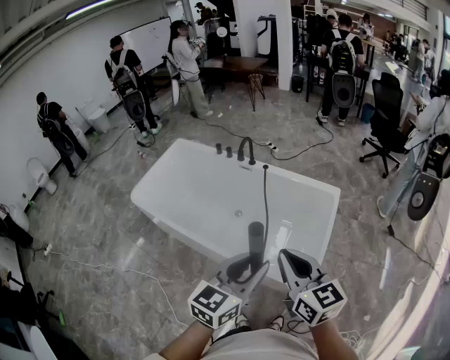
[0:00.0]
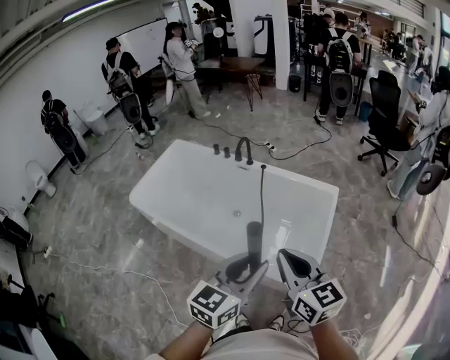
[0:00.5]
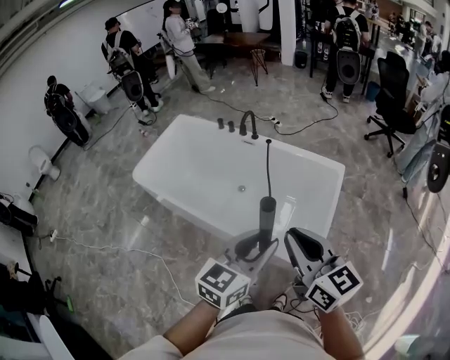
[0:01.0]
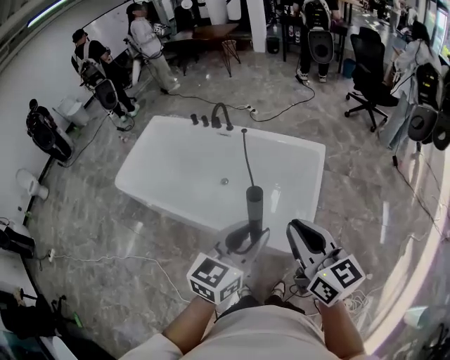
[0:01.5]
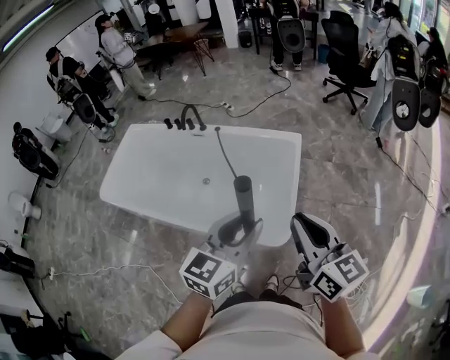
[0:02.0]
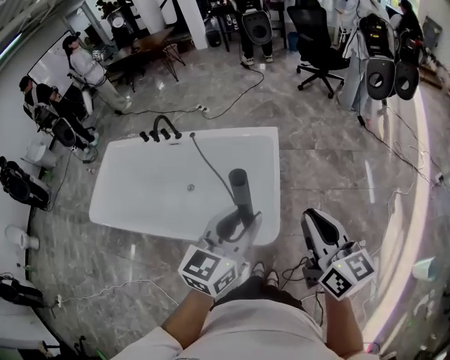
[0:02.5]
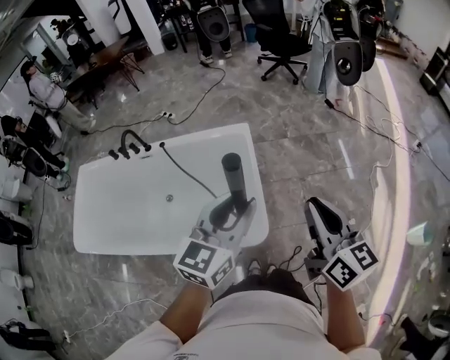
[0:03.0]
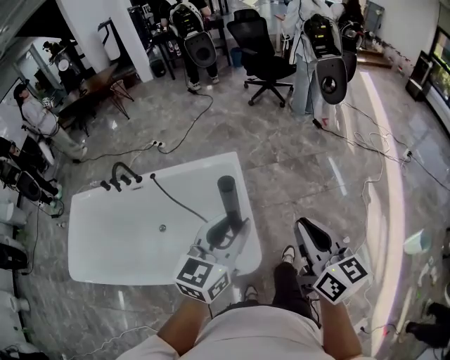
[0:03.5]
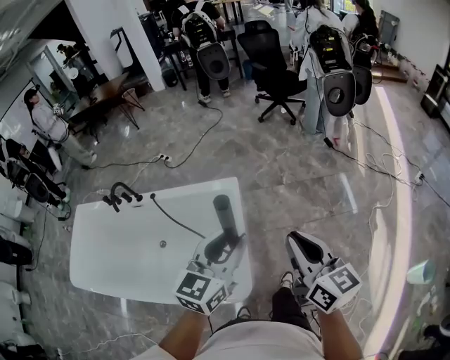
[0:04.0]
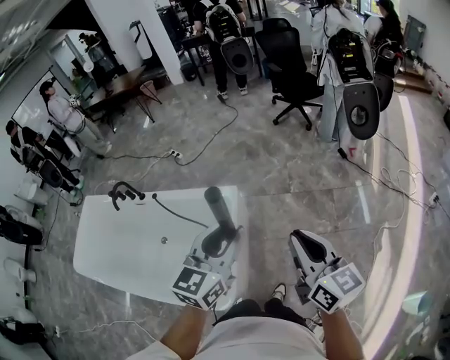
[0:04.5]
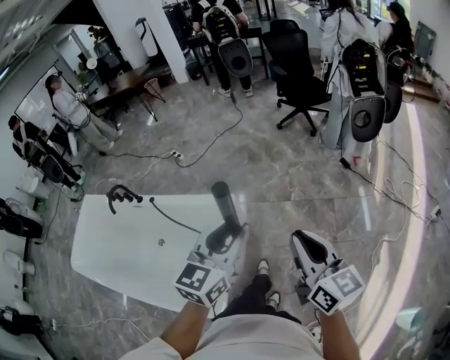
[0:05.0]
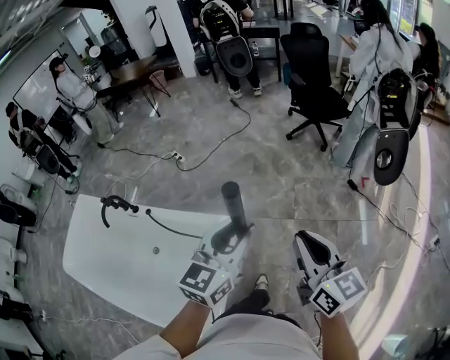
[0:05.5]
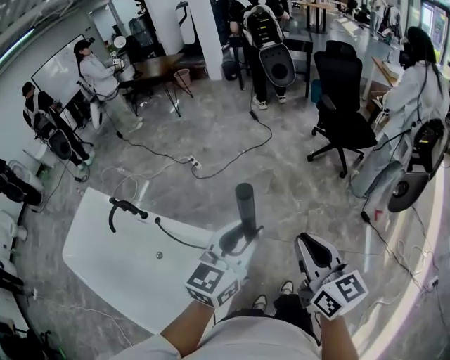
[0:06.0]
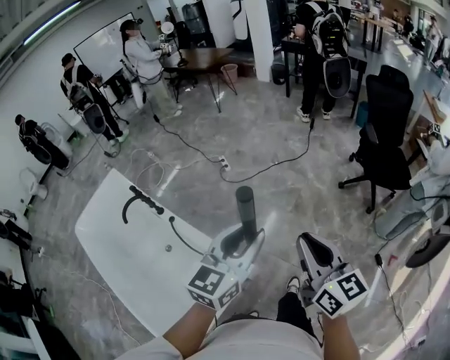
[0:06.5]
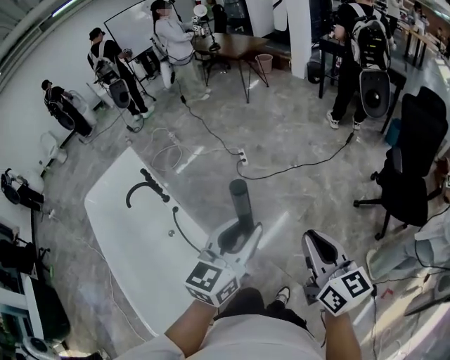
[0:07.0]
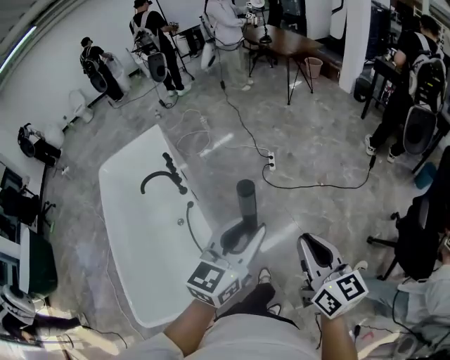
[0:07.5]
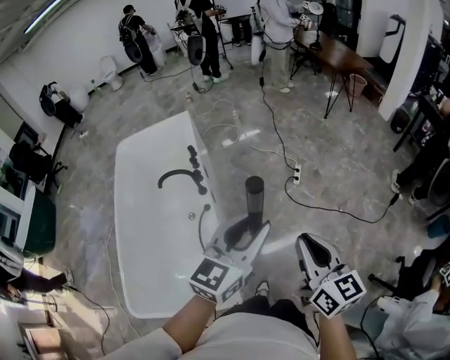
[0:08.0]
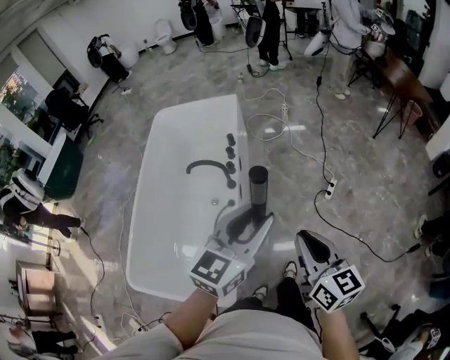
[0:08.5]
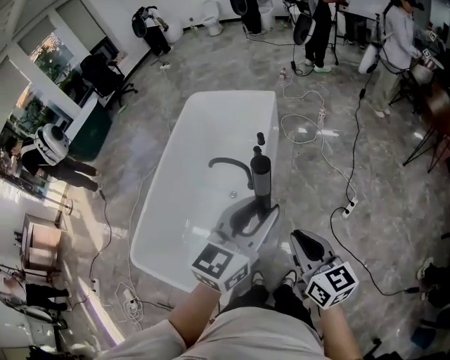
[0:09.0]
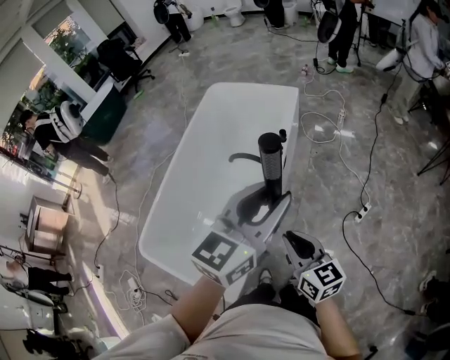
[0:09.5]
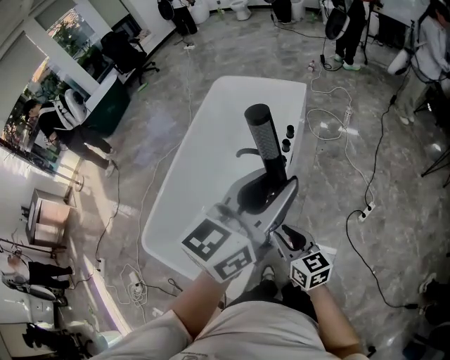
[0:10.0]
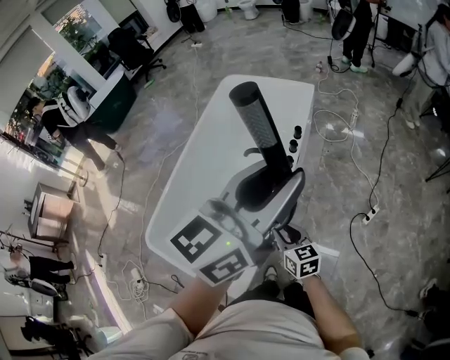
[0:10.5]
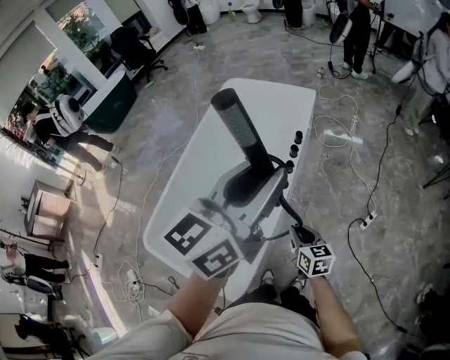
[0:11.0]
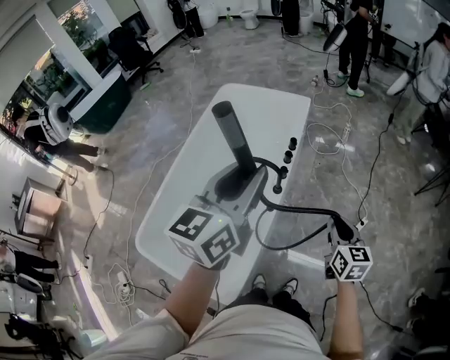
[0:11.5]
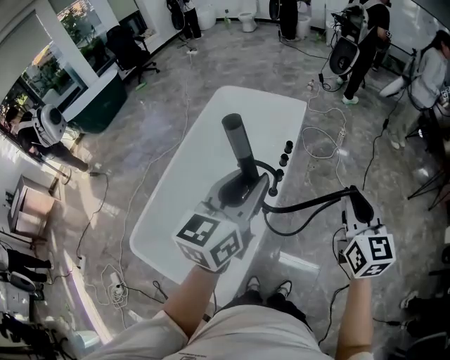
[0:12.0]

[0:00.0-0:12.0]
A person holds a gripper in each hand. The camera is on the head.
0:00.0 to 0:02.0: Both grippers travel together to the right, approximately 15 cm.
0:02.0 to 0:04.0: Both grippers travel together forward and to the right, roughly 25 cm.
0:04.0 to 0:06.0: The pair of grippers is taken forward, approximately 40 cm.
0:06.0 to 0:08.0: The left gripper moves roughly 40 cm, and changes its angle by about 50 degrees. The right gripper changes place by approximately 50 cm, and rotates approximately 50 degrees.
0:08.0 to 0:10.0: The left gripper changes place by about 25 cm, and swivels some 30 degrees. Meanwhile the right gripper moves some 30 cm, and changes its angle by some 50 degrees.
0:10.0 to 0:12.0: The left gripper travels to the left by about 10 cm. The right gripper goes some 25 cm upward, to the right and forward, and changes its angle by roughly 30 degrees.

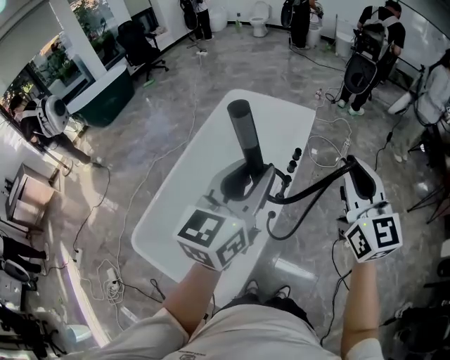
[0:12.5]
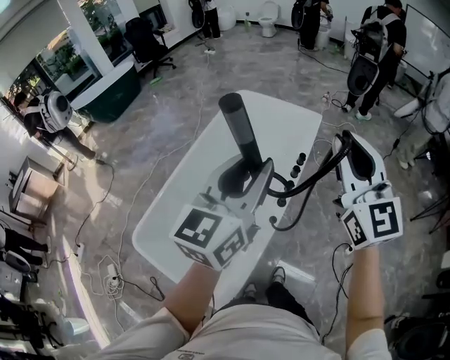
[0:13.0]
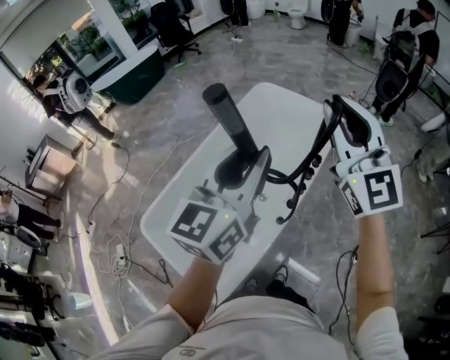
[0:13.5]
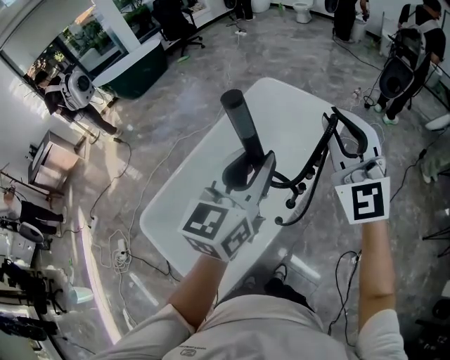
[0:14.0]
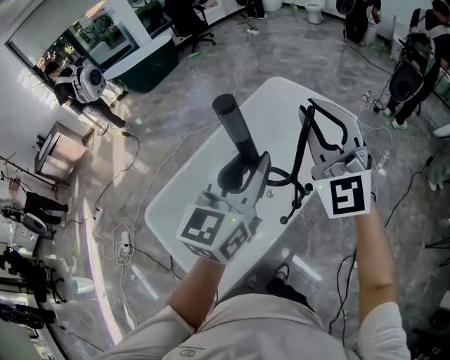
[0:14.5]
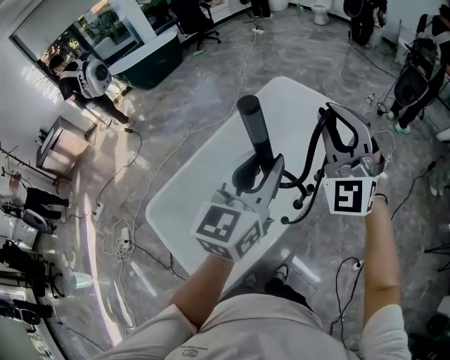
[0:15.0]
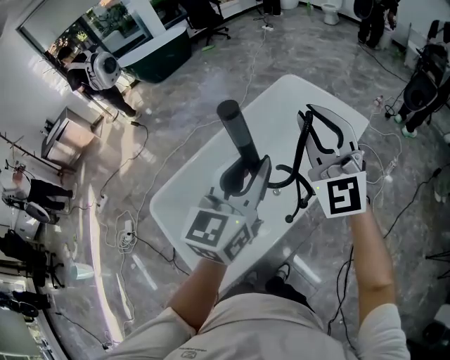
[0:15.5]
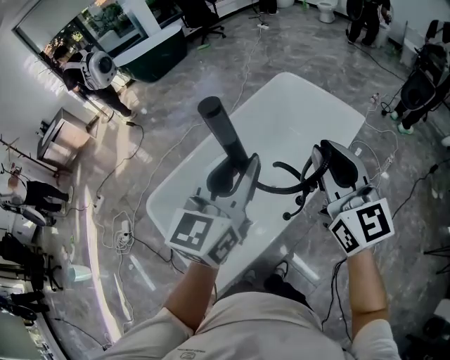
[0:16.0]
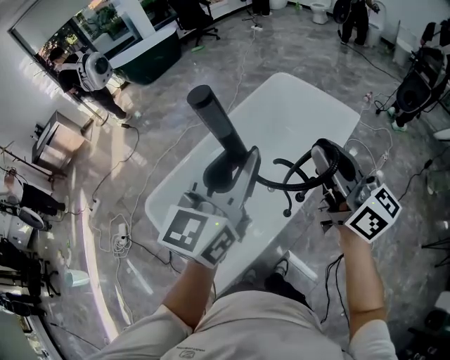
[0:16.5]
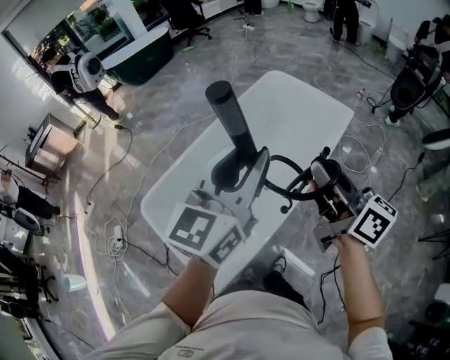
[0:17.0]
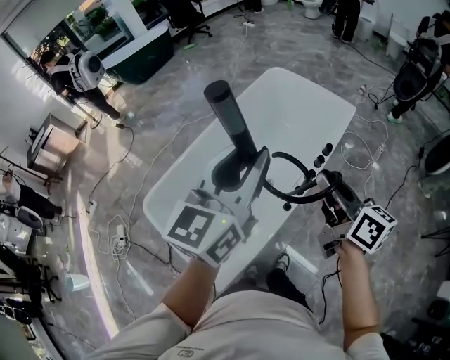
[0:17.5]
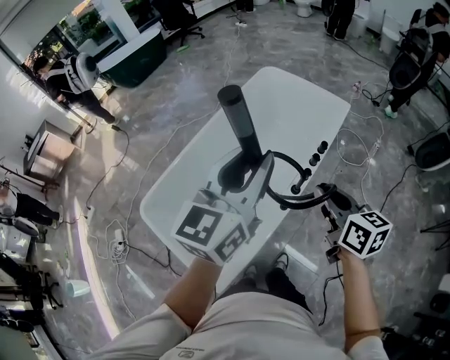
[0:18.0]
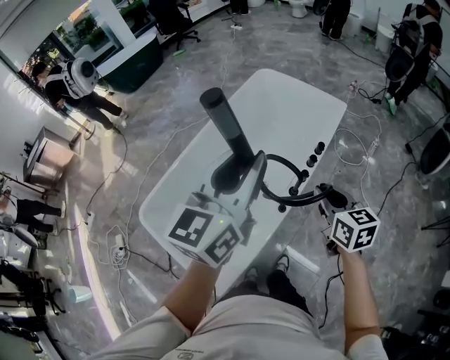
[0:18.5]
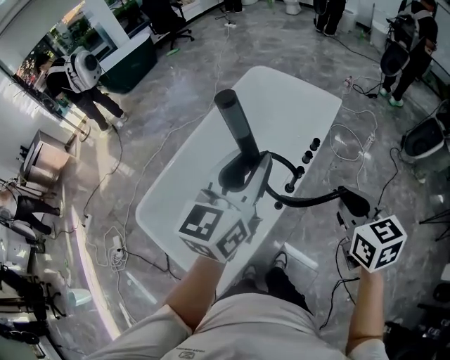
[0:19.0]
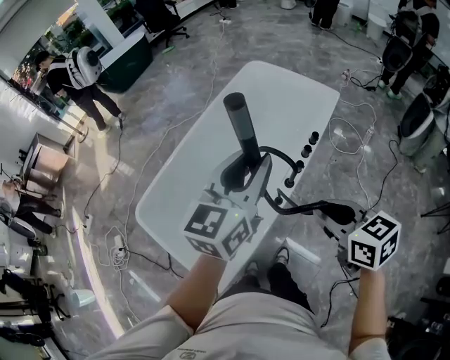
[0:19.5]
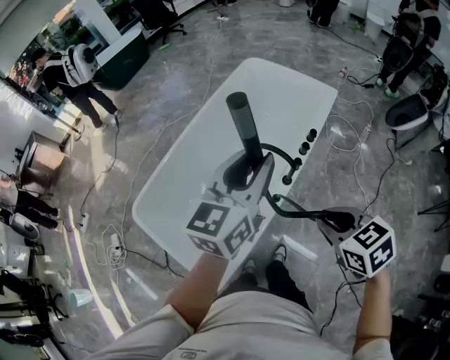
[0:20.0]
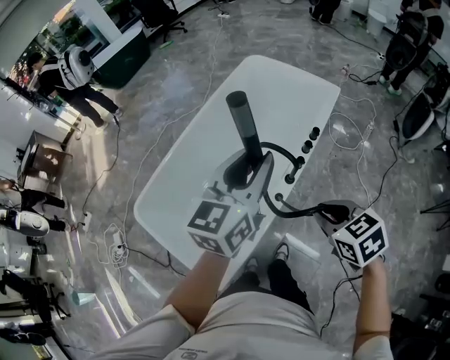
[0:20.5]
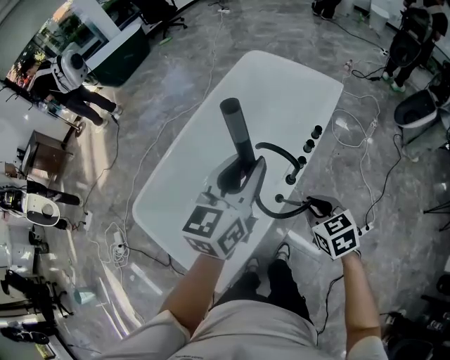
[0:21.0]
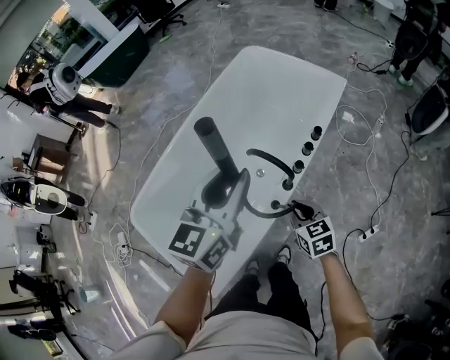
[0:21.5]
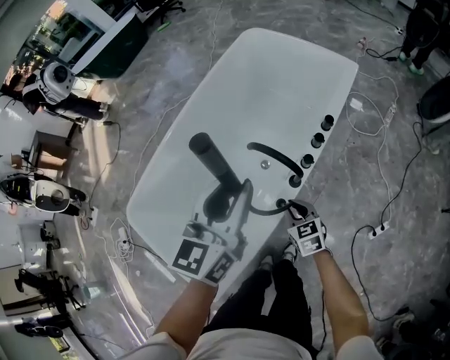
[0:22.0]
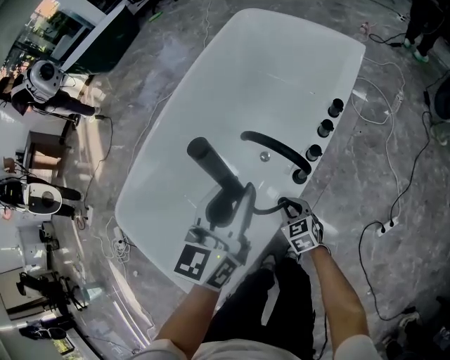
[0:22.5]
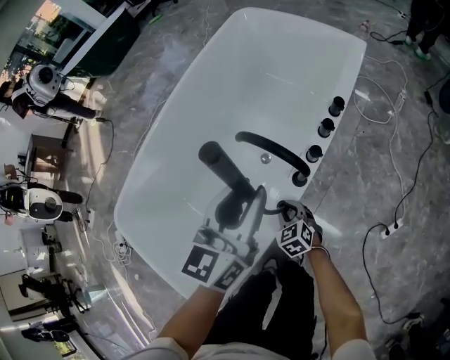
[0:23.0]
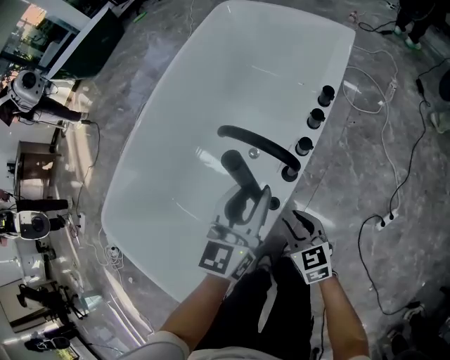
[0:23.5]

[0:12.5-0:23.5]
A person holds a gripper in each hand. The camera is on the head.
0:12.5 to 0:14.5: The left gripper moves forward, some 10 cm, and rotates approximately 20 degrees; the right gripper is displaced forward and to the left by roughly 20 cm, and turns by about 40 degrees.
0:14.5 to 0:16.0: The left gripper shifts some 5 cm to the left, while the right gripper changes place by about 5 cm, and rolls clockwise, seen from behind, by some 40 degrees.
0:16.0 to 0:18.0: The right gripper travels downward and backward by about 15 cm, and swivels approximately 40 degrees.
0:18.0 to 0:20.0: The left gripper travels downward by approximately 5 cm. The right gripper moves backward, some 10 cm, and rotates roughly 40 degrees.
0:20.0 to 0:21.5: The right gripper moves downward and forward, approximately 25 cm. Meanwhile the left gripper heads downward and forward, covering roughly 10 cm.
0:21.5 to 0:23.5: The grippers both shift downward by approximately 25 cm.

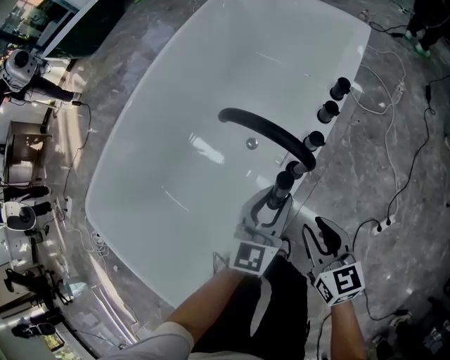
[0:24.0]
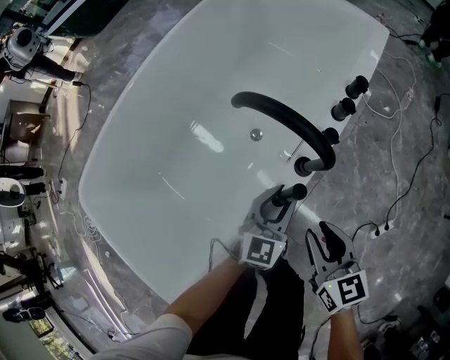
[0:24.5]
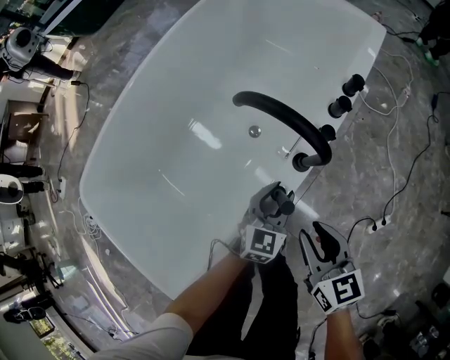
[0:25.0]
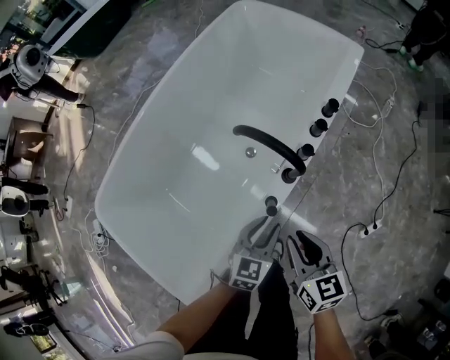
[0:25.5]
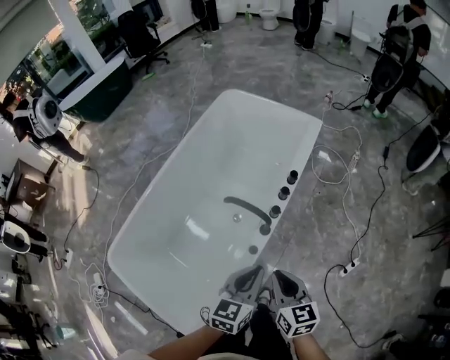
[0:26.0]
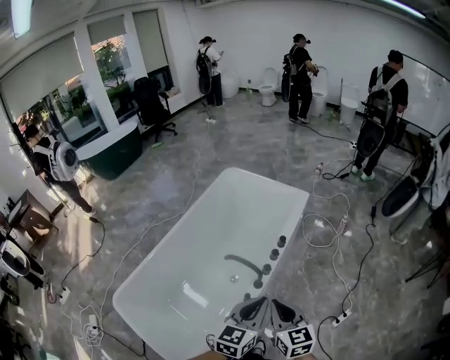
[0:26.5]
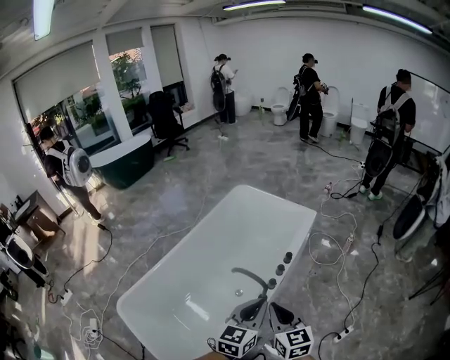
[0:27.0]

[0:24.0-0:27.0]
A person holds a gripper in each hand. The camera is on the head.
0:24.0 to 0:25.5: The right gripper shifts some 10 cm upward; the left gripper travels backward by roughly 10 cm, and moves some 10 cm downward and comes back.
0:25.5 to 0:27.0: The grippers both shift upward by some 35 cm. The left gripper closes up. The right gripper closes its fingers.
